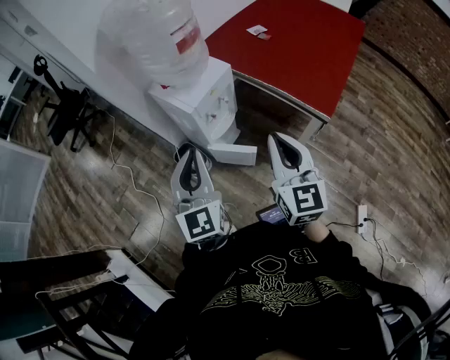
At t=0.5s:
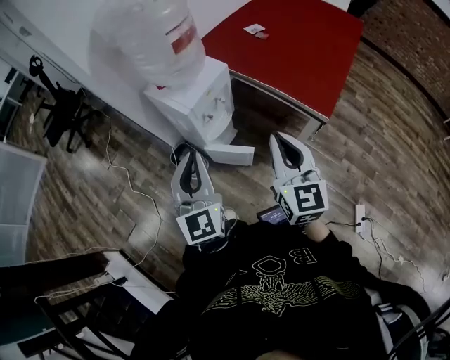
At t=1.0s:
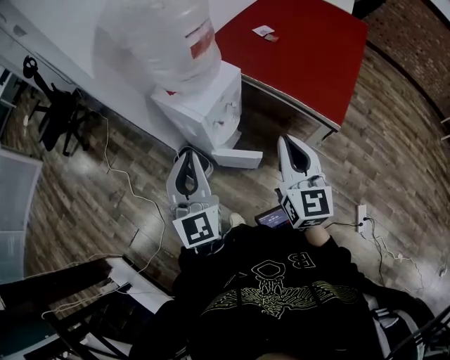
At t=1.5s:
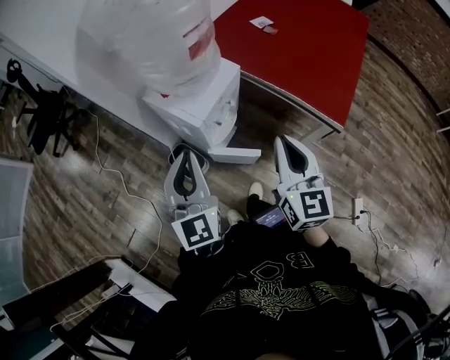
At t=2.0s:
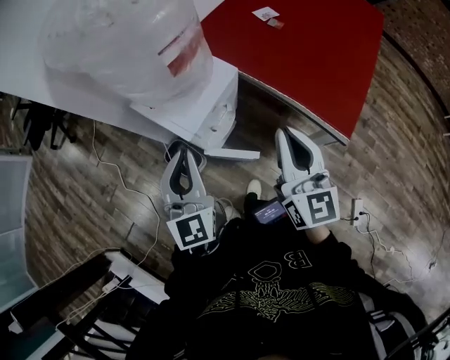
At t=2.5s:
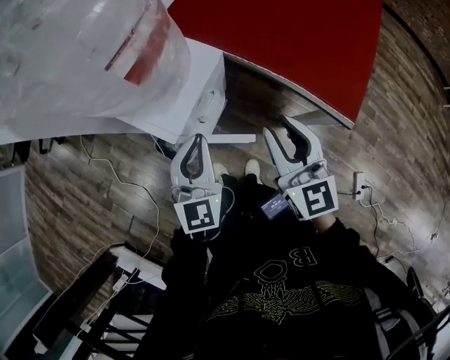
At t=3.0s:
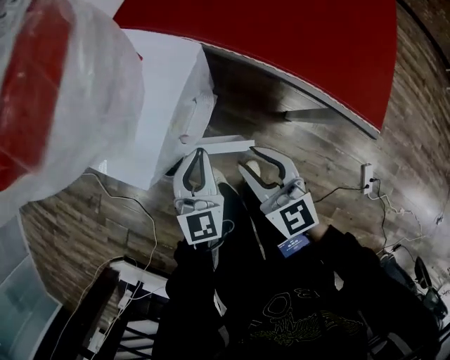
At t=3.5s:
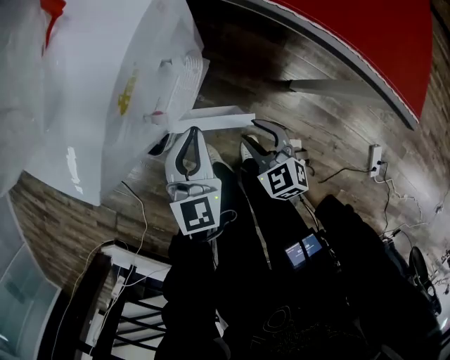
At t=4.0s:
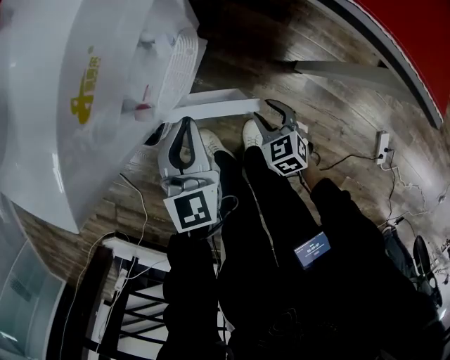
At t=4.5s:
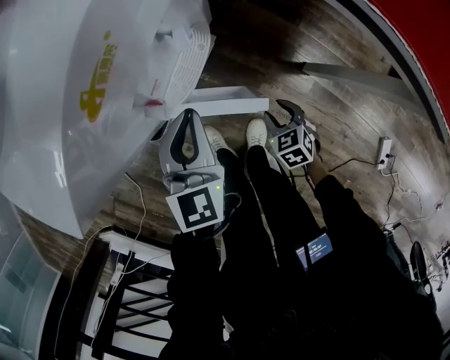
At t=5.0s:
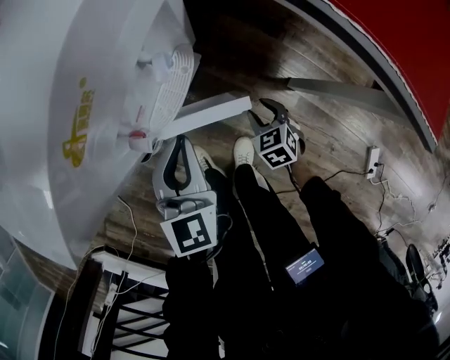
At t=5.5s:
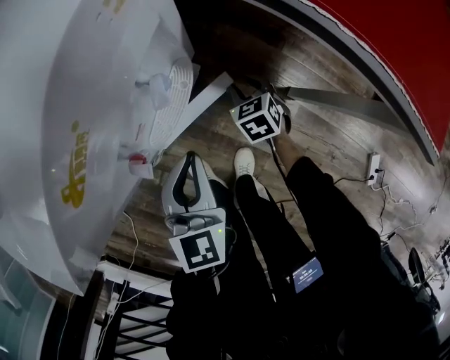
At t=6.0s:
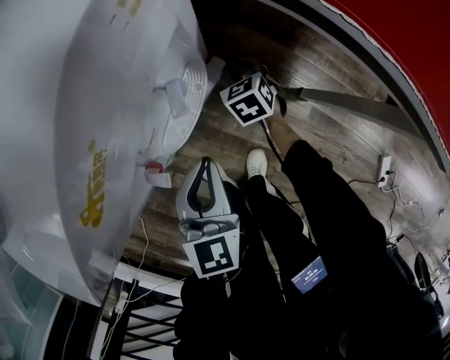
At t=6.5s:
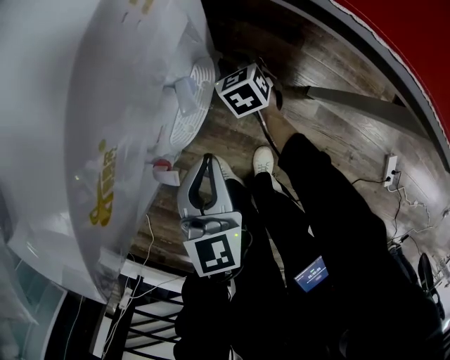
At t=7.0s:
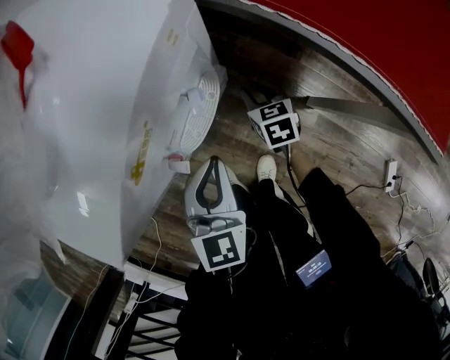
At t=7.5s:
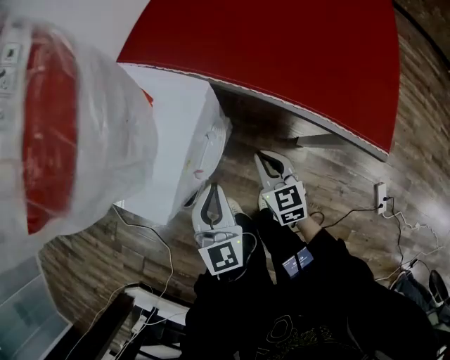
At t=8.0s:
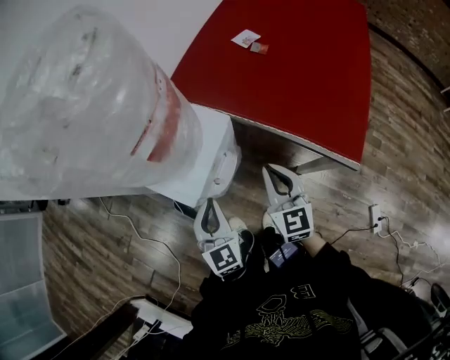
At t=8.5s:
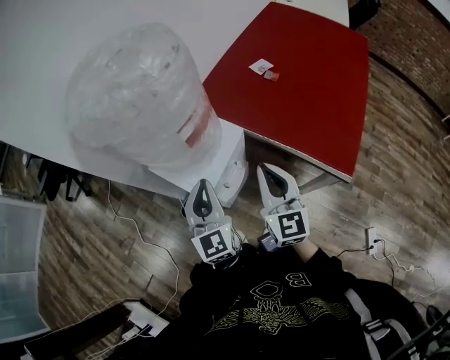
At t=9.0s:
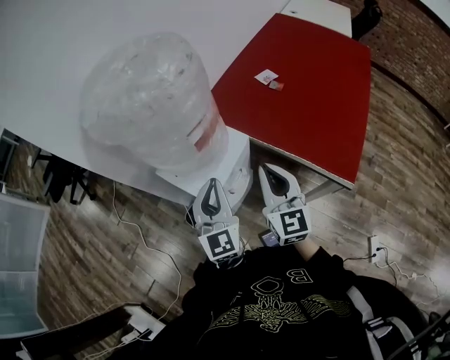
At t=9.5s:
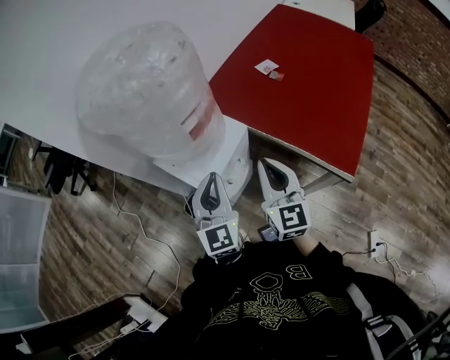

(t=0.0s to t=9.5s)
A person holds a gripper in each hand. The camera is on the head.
t=0.0s - t=2.0s: Both grippers move forward, about 20 cm.
t=2.0s - t=4.0s: The left gripper shifts about 40 cm downward, and turns by some 30 degrees; the right gripper moves downward, approximately 60 cm, angles its fingers downward, by about 50 degrees, and opens up.
t=4.0s - t=5.5s: The right gripper is displaced forward by some 15 cm.
t=5.5s - t=7.5s: The left gripper moves upward, approximately 15 cm. Meanwhile the right gripper shifts approximately 25 cm upward, turns by roughly 30 degrees, and closes its fingers.
t=7.5s - t=9.5s: The grippers both shift upward by roughly 30 cm. The right gripper swivels some 30 degrees.

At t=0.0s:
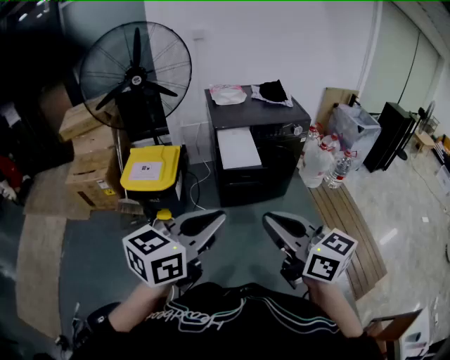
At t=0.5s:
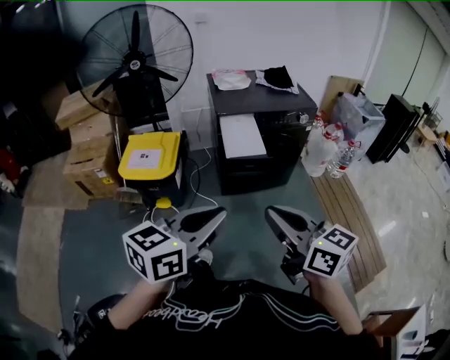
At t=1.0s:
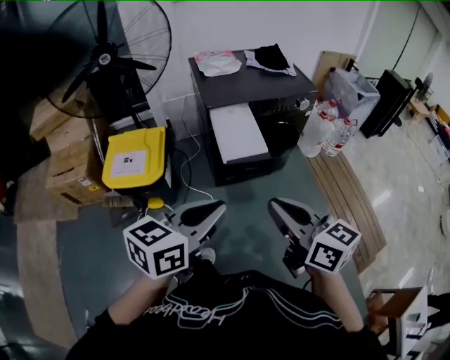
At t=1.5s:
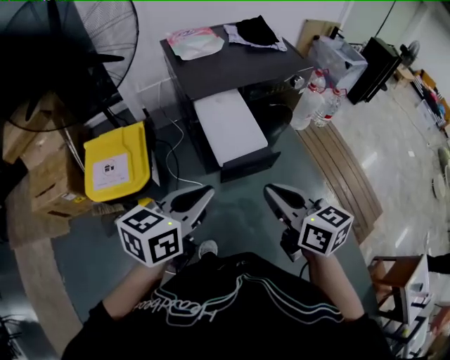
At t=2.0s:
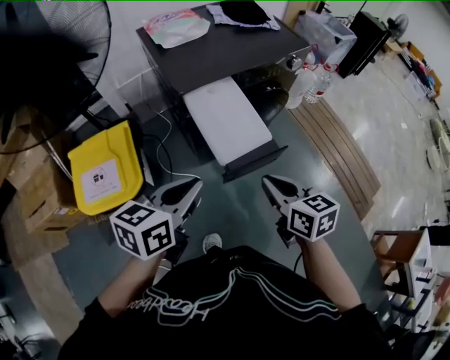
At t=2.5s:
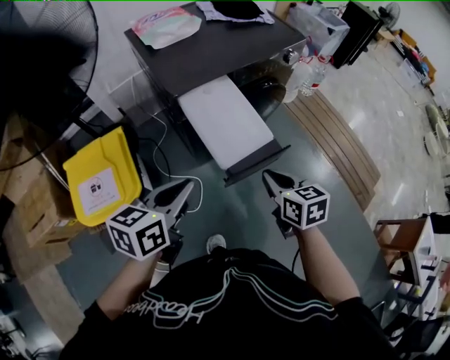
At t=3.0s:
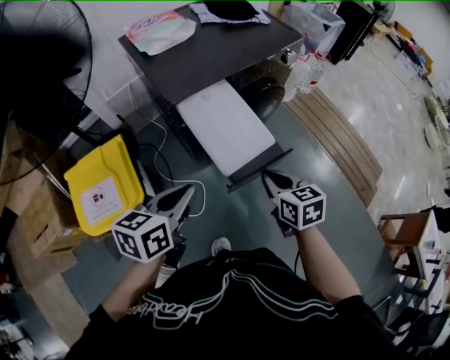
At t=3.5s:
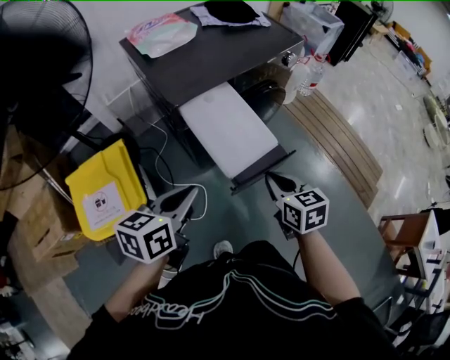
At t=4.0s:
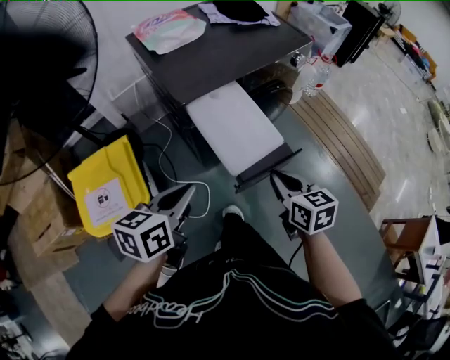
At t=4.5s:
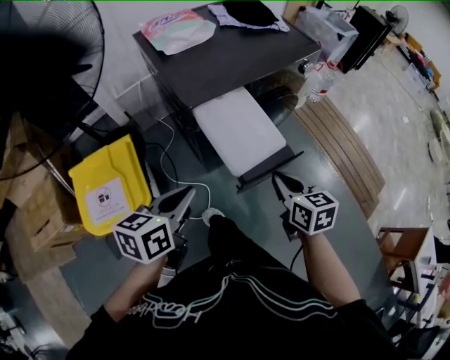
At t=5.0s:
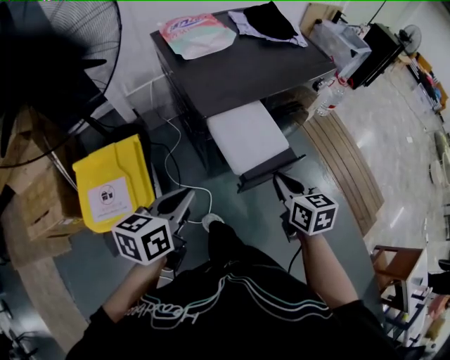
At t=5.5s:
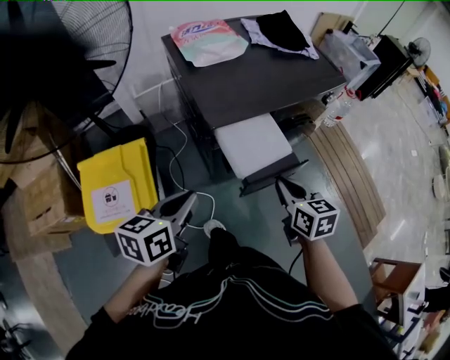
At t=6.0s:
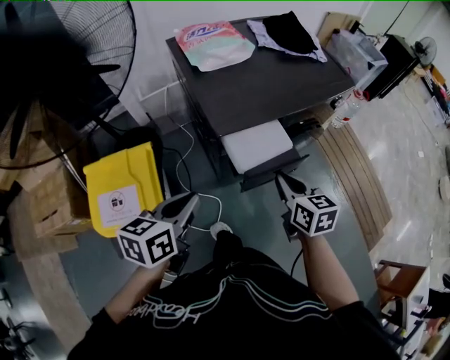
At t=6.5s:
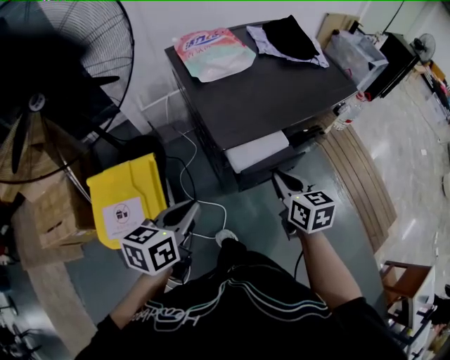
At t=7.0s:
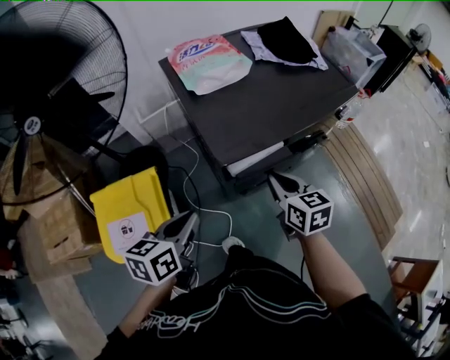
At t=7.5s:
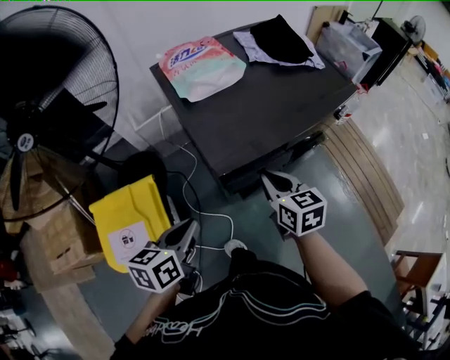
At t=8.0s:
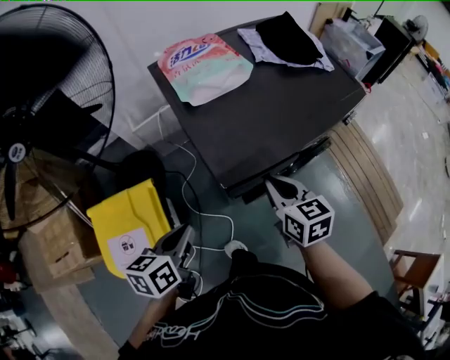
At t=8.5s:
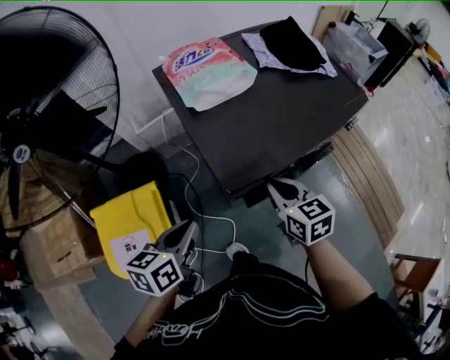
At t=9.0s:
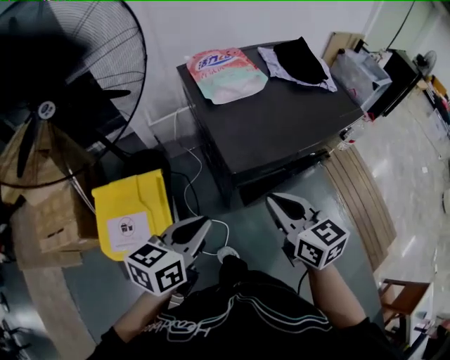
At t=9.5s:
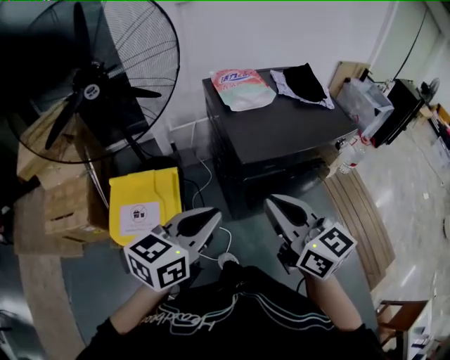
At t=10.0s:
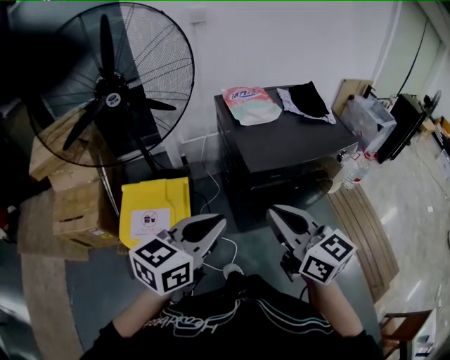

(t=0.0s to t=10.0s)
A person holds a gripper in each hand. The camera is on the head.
t=0.0s - t=2.0s: The right gripper heads forward and downward, covering some 40 cm, and swivels roughly 40 degrees, while the left gripper heads forward, downward and to the left, covering roughly 40 cm, and turns by some 20 degrees.
t=2.0s - t=4.0s: The right gripper travels forward and downward by some 10 cm. Meanwhile the left gripper shifts about 10 cm to the left and forward.
t=4.0s - t=6.0s: The left gripper shifts some 10 cm to the left and forward. Meanwhile the right gripper heads forward and to the left, covering about 15 cm.
t=6.0s - t=8.0s: The right gripper goes about 15 cm forward and to the left. The left gripper goes about 10 cm forward, to the left and downward.
t=8.0s - t=10.0s: The right gripper moves backward and upward, approximately 35 cm, and turns by some 30 degrees. The left gripper is displaced upward and backward by some 30 cm, and rotates roughly 30 degrees.

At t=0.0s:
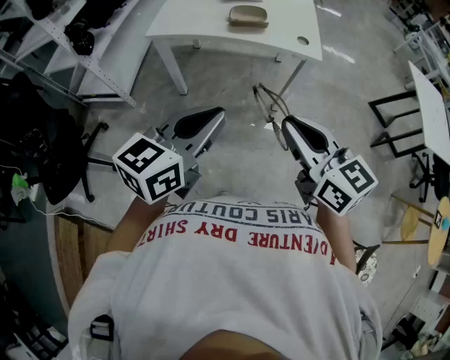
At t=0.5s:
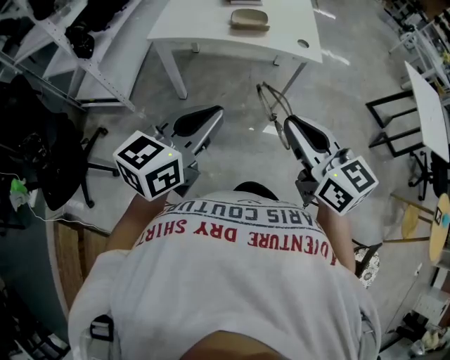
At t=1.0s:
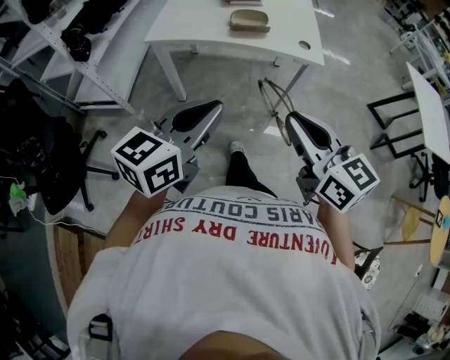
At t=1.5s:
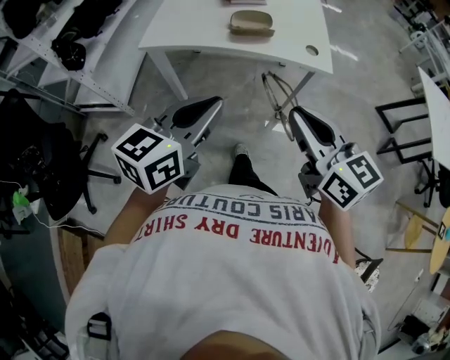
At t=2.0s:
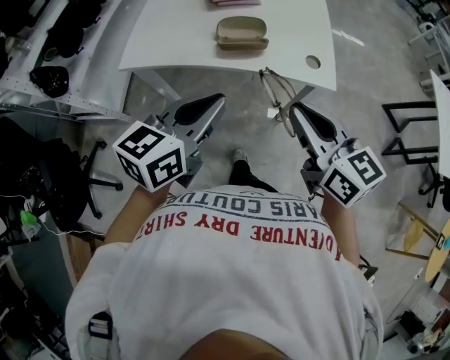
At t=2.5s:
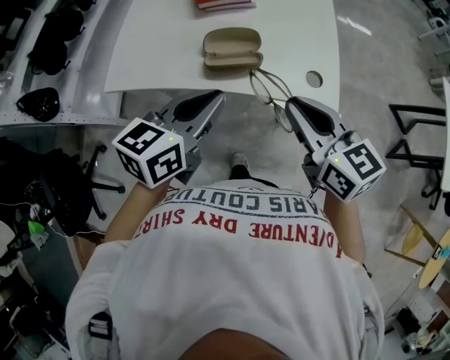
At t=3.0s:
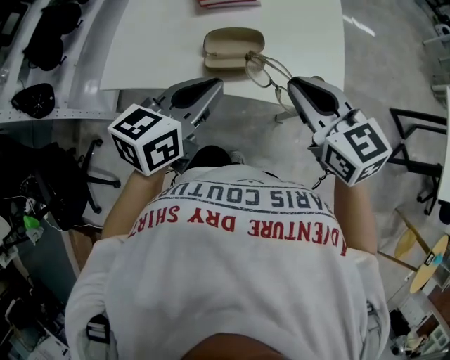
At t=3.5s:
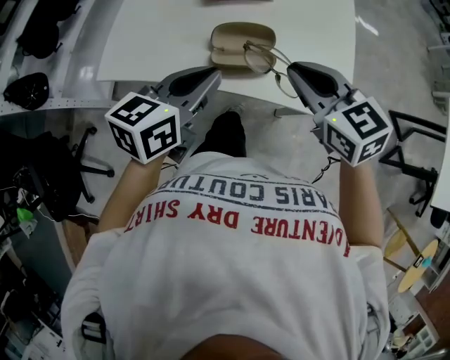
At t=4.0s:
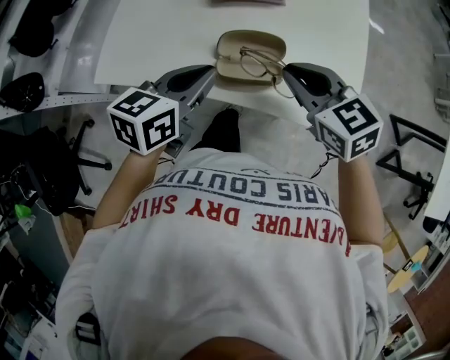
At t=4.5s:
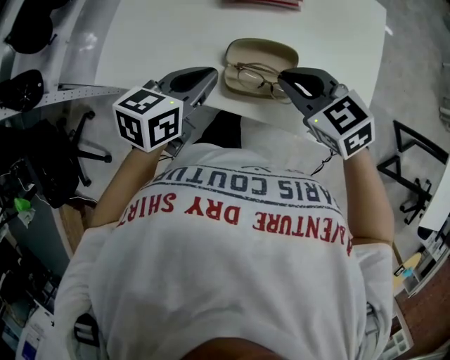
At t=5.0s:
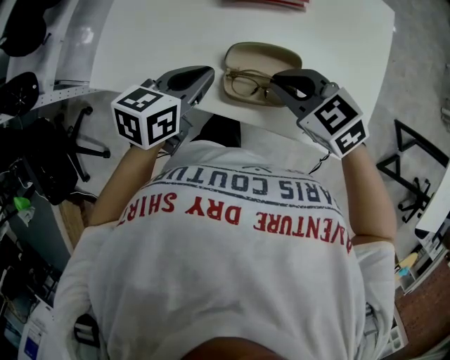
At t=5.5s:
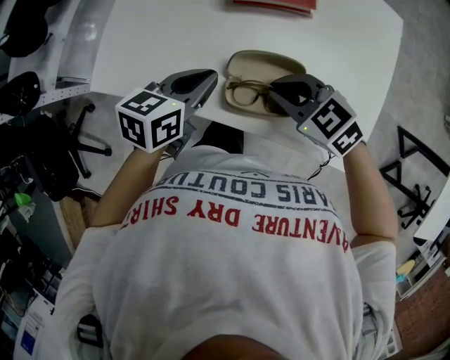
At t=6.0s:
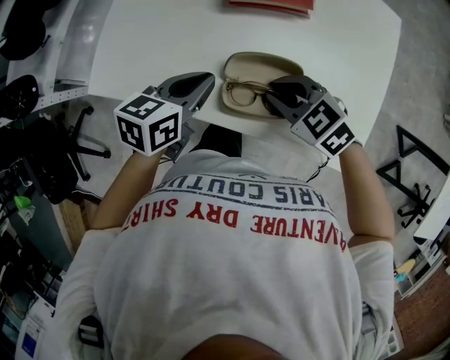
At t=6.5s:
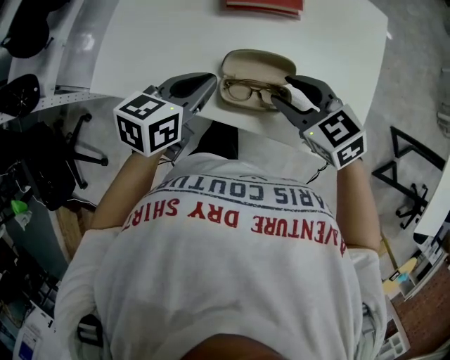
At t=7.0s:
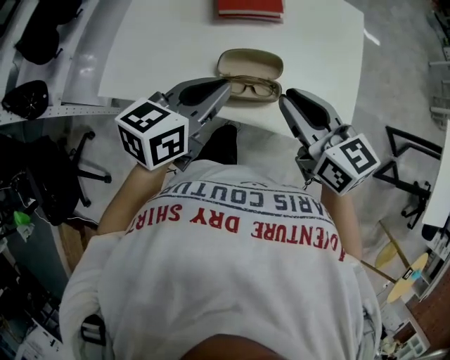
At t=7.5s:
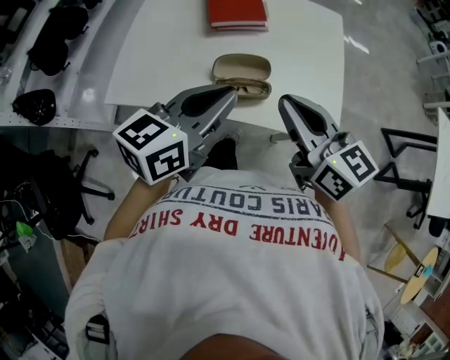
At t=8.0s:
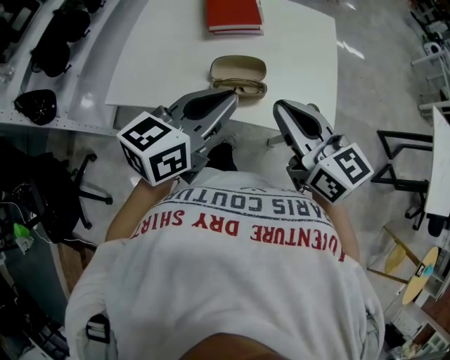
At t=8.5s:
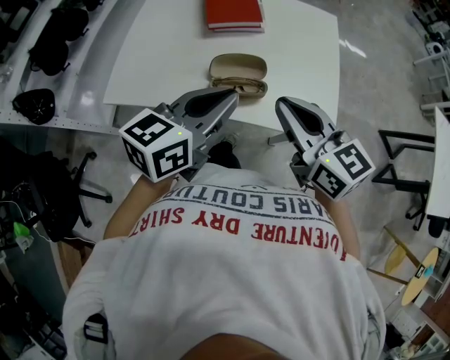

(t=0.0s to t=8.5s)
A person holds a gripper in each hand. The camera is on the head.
t=0.0s - t=2.0s: Both grippers travel together forward, some 25 cm.
t=2.0s - t=4.0s: The right gripper is displaced forward by some 25 cm, and changes its angle by some 30 degrees, while the left gripper heads forward and downward, covering some 25 cm.
t=4.0s - t=6.5s: The right gripper goes some 5 cm downward, and opens its fingers.
t=6.5s - t=8.5s: The right gripper is displaced upward and backward by roughly 20 cm, tips its fingers upward by roughly 30 degrees, and closes; the left gripper heads upward, backward and to the right, covering roughly 20 cm, and rotates some 20 degrees.
